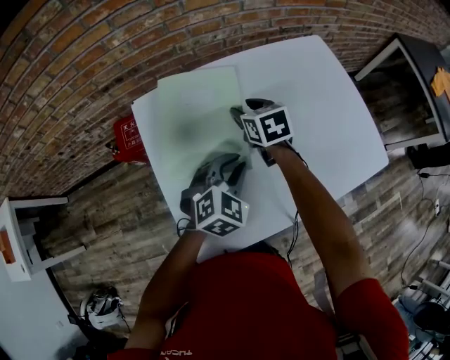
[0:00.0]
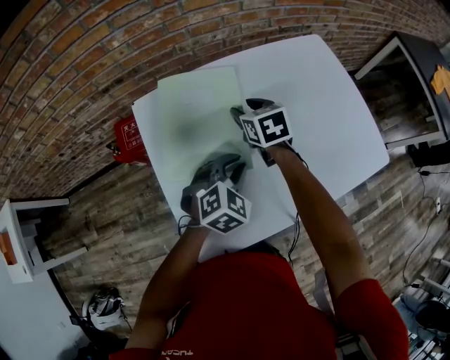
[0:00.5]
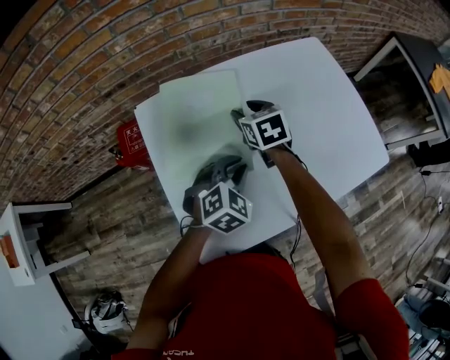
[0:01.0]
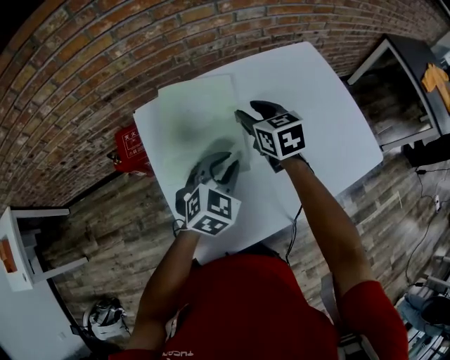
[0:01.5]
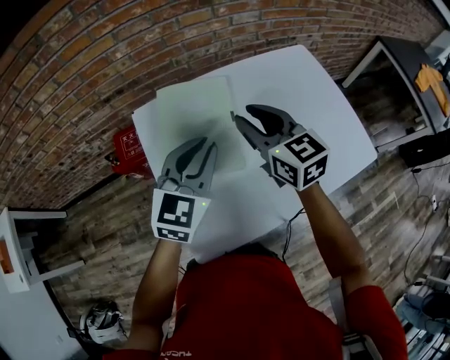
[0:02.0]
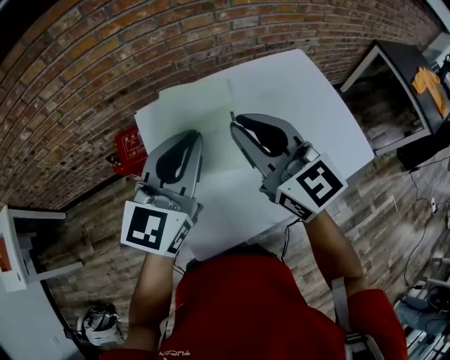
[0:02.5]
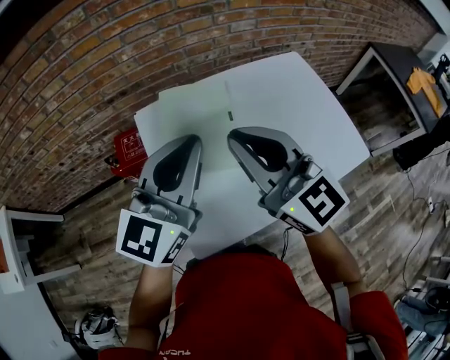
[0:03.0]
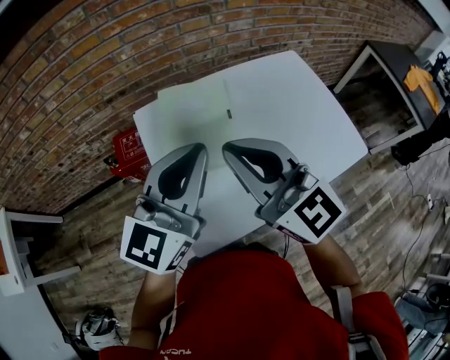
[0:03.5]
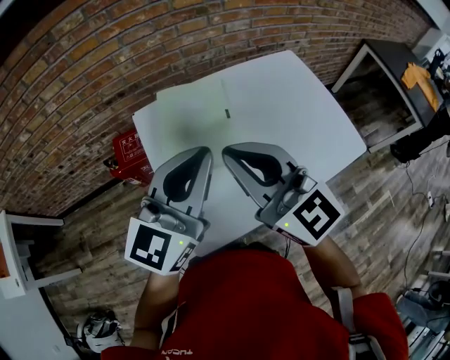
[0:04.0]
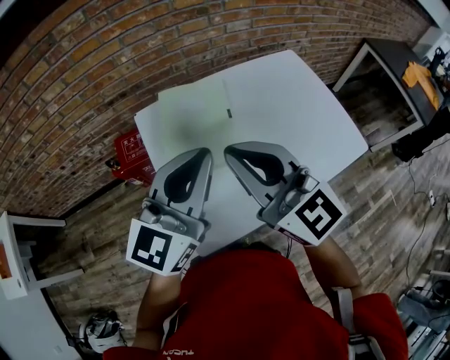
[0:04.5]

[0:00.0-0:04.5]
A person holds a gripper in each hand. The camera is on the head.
0:00.0 to 0:02.0: The right gripper goes approximately 20 cm upward and backward, and swivels approximately 30 degrees; the left gripper is displaced upward and to the left by some 15 cm, and swivels roughly 30 degrees.
0:02.0 to 0:04.5: The left gripper is displaced upward and backward by about 15 cm, and turns by roughly 20 degrees. The right gripper travels backward, upward and to the left by about 20 cm, rotates approximately 20 degrees, and closes up.

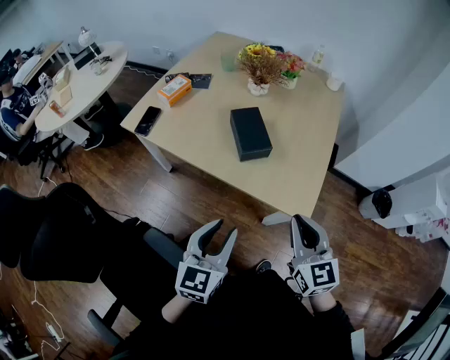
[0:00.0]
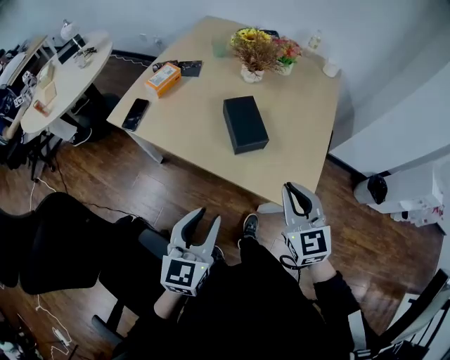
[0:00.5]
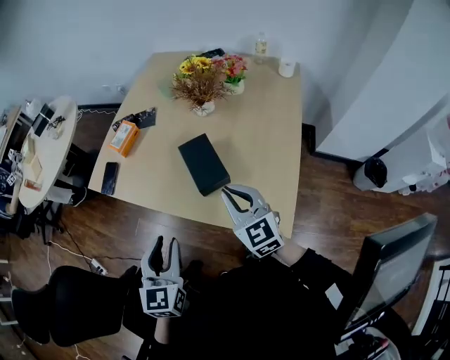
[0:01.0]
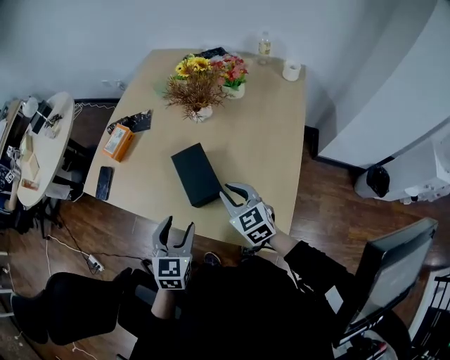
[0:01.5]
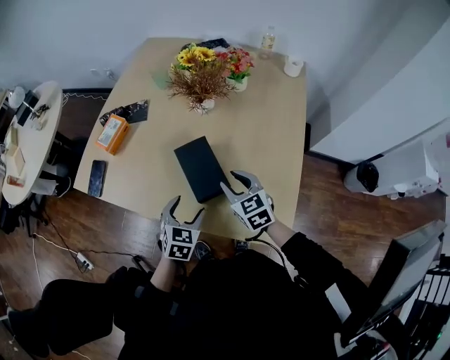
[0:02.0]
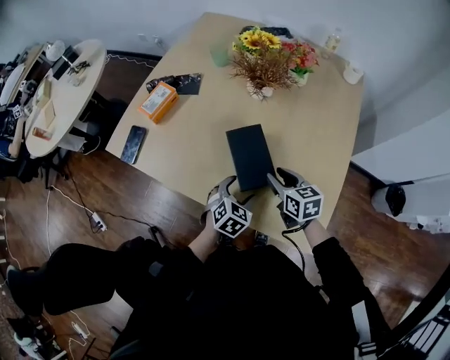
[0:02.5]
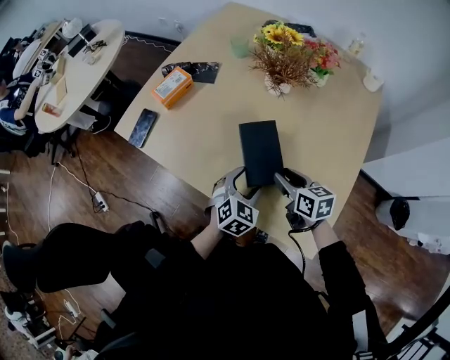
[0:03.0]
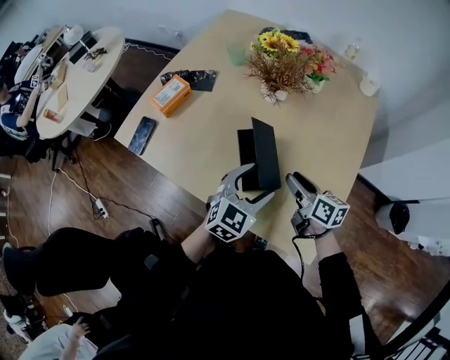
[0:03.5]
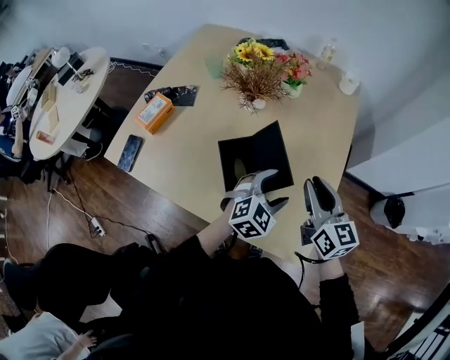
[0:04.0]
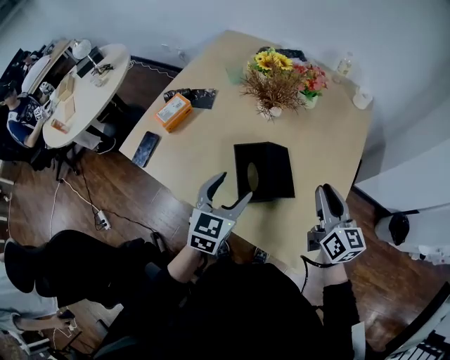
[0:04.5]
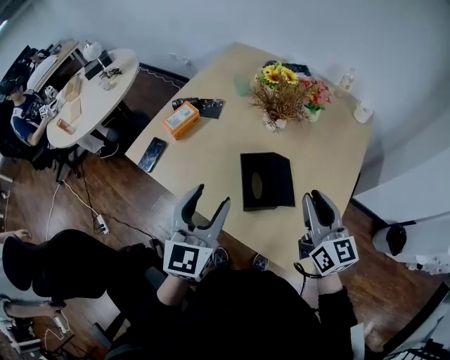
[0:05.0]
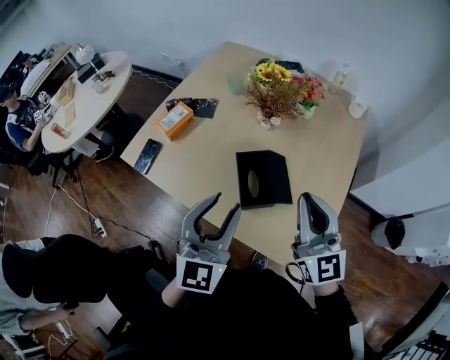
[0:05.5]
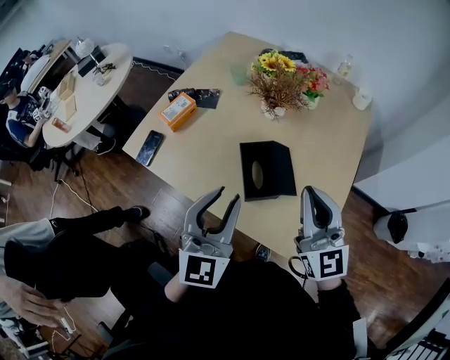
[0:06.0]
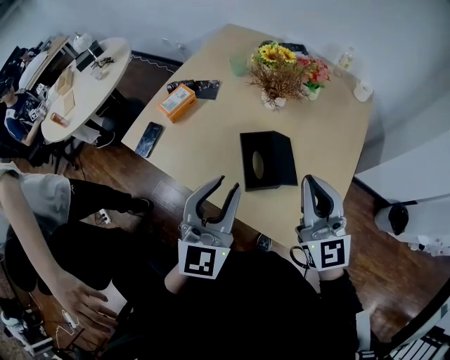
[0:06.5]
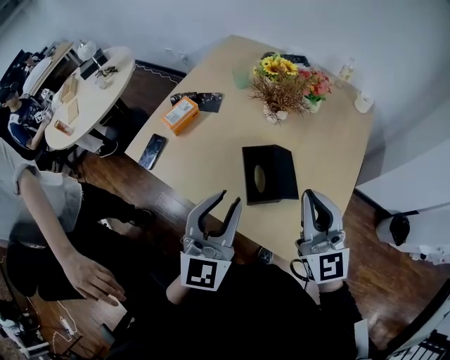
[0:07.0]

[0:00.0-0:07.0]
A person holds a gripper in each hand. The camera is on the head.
0:00.0 to 0:02.0: The grippers both shift forward and downward by about 35 cm. The left gripper rotates about 30 degrees, and opens its fingers; the right gripper opens its fingers.
0:02.0 to 0:03.5: The left gripper heads upward and to the right, covering about 10 cm, and swivels some 20 degrees. Meanwhile the right gripper twists approximately 40 degrees clockwise, seen from behind.
0:03.5 to 0:05.0: The left gripper is displaced upward and to the left by some 20 cm, and rotates about 30 degrees, while the right gripper goes roughly 20 cm upward, and swivels roughly 40 degrees.
0:05.0 to 0:07.0: The right gripper goes some 5 cm upward, changes its angle by approximately 20 degrees, and closes, while the left gripper closes.

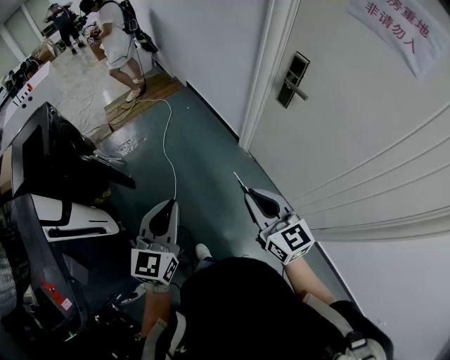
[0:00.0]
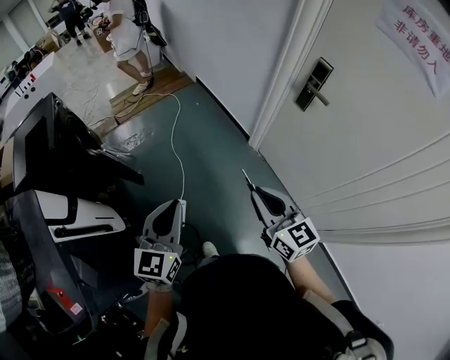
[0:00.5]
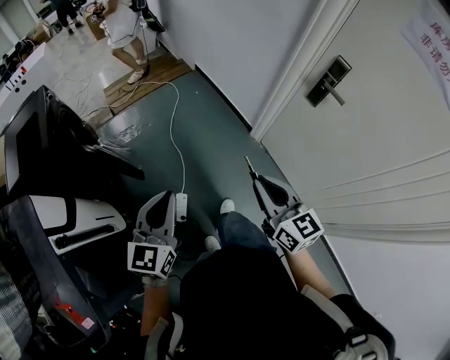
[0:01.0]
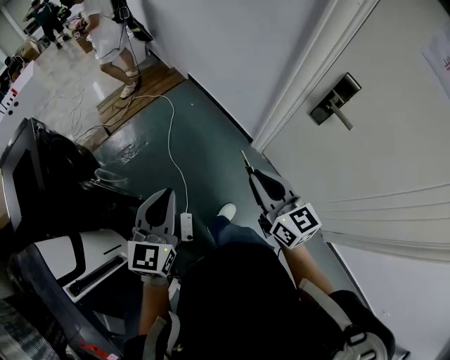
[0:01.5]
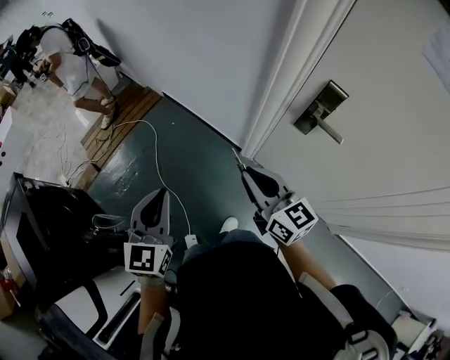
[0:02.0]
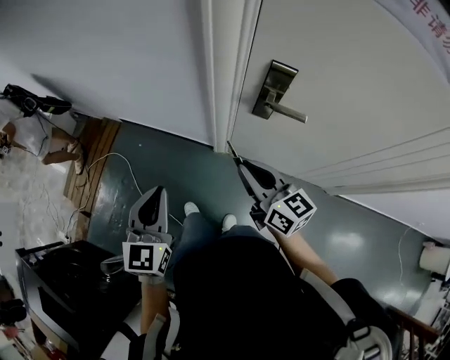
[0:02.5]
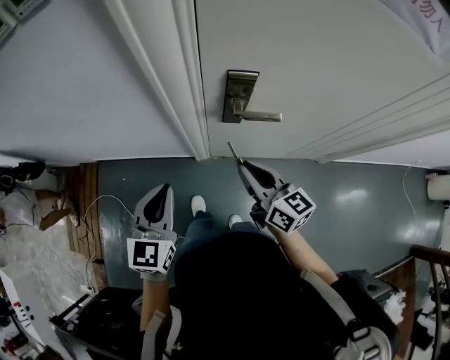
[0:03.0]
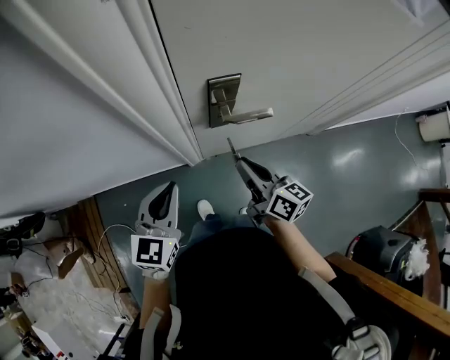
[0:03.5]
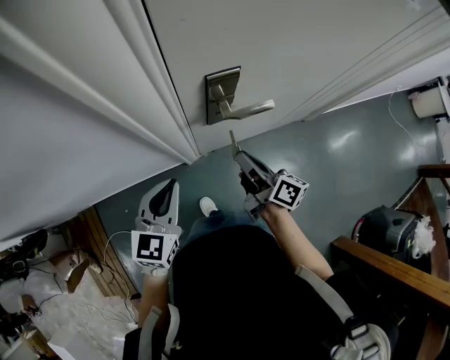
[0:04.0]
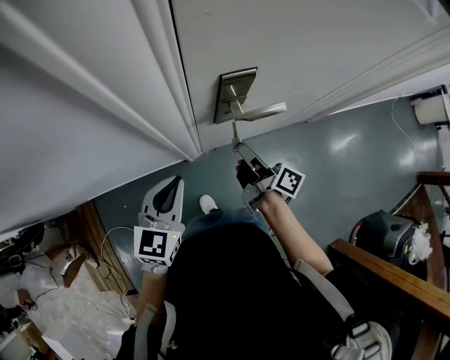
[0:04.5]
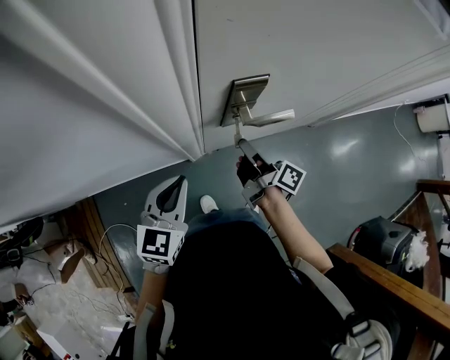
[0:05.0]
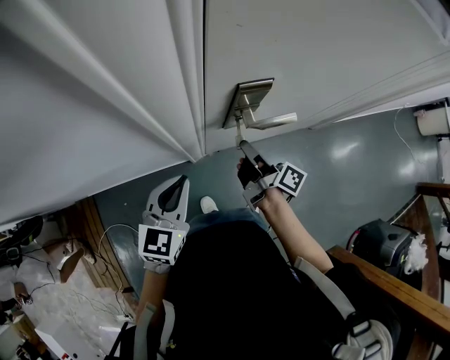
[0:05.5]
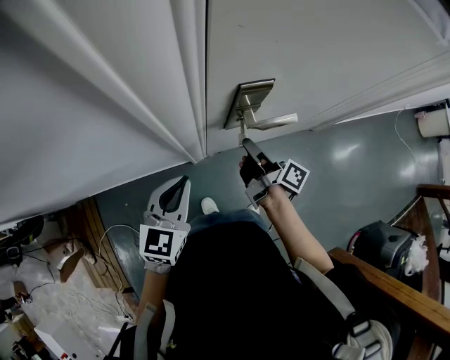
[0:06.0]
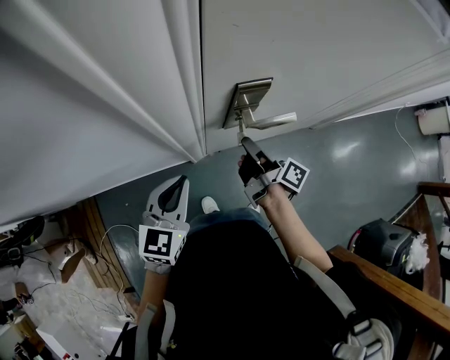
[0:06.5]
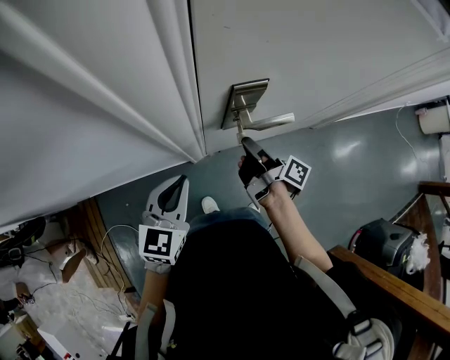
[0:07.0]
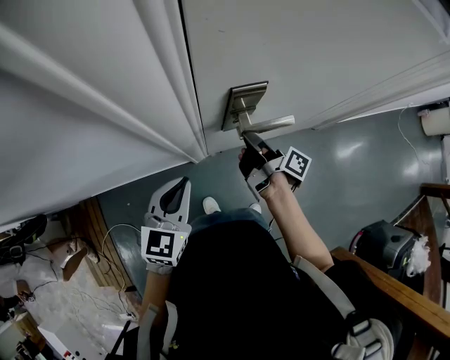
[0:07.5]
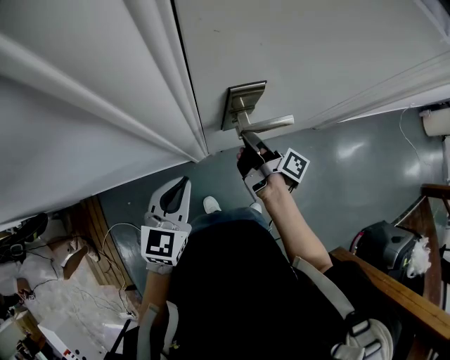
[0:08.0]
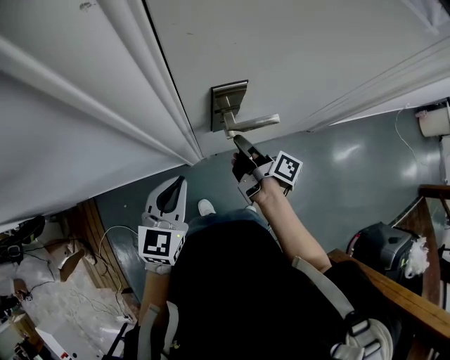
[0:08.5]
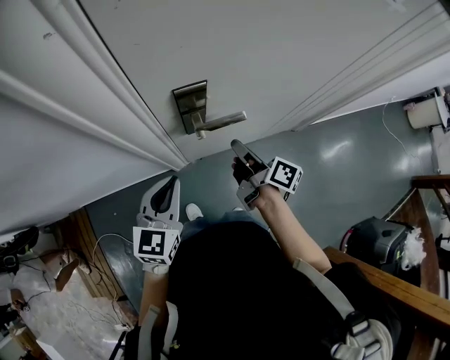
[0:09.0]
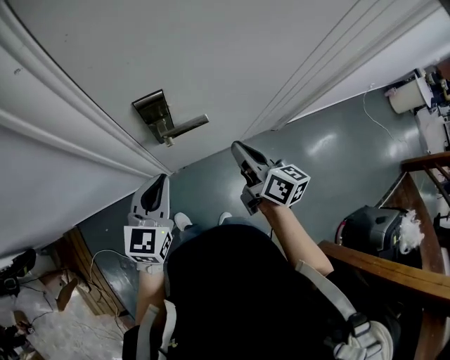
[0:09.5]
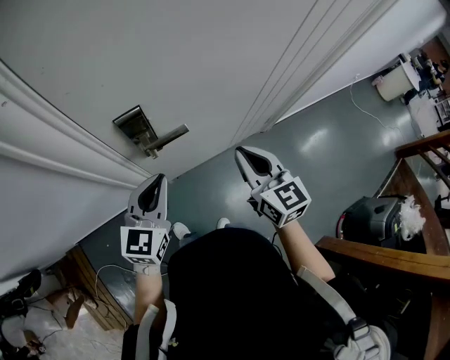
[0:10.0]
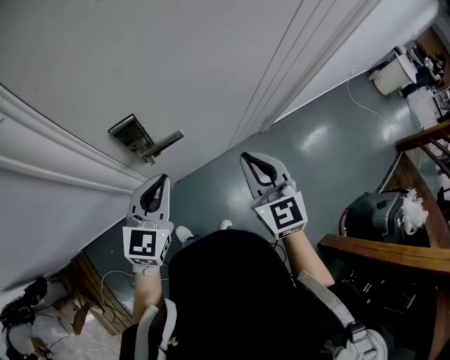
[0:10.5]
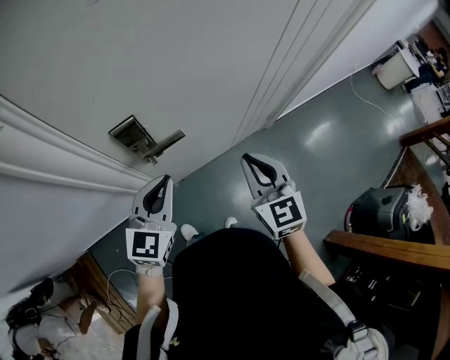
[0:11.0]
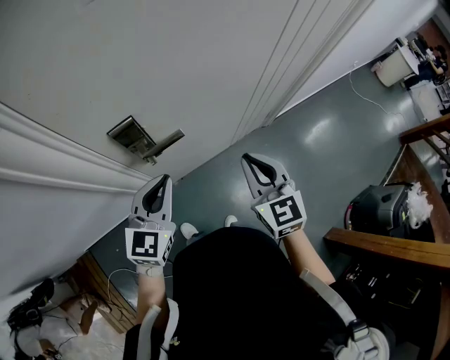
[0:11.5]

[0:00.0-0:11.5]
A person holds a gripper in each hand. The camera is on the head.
0:00.0 to 0:02.0: The two grippers go roughly 40 cm forward.
0:02.0 to 0:04.0: The right gripper moves roughly 25 cm, and changes its angle by approximately 70 degrees; the left gripper ends up some 40 cm from where it was, and swivels roughly 70 degrees.
0:04.0 to 0:06.0: The right gripper heads forward, covering about 5 cm, and turns by roughly 20 degrees.
0:06.0 to 0:07.5: The grippers make only small movements.
0:07.5 to 0:09.5: The right gripper heads to the right, upward and backward, covering about 20 cm, and rotates around the line of its fingers by about 50 degrees, counterclockwise from behind. Meanwhile the left gripper goes some 15 cm to the right.
0:09.5 to 0:11.5: The right gripper shifts approximately 10 cm to the right and upward, and rotates around the line of its fingers by about 40 degrees, counterclockwise from behind, while the left gripper moves to the right, some 5 cm.

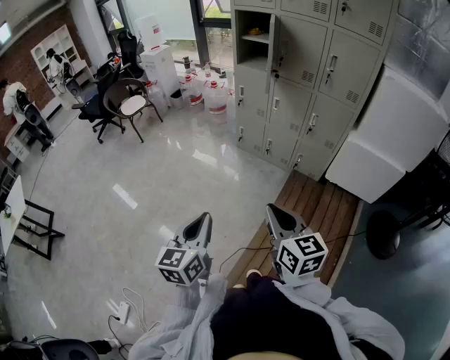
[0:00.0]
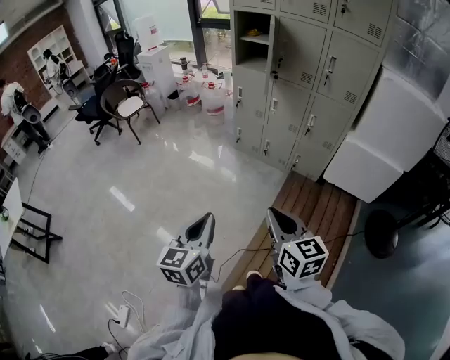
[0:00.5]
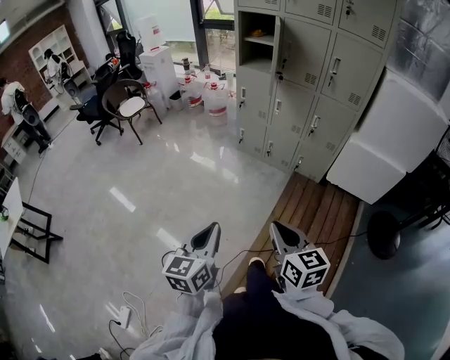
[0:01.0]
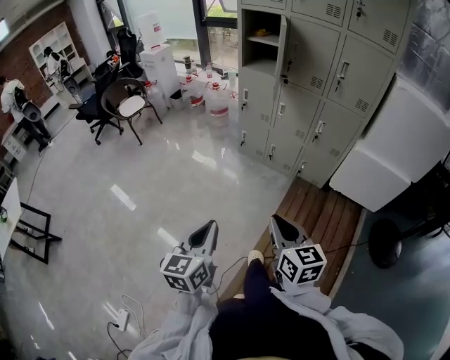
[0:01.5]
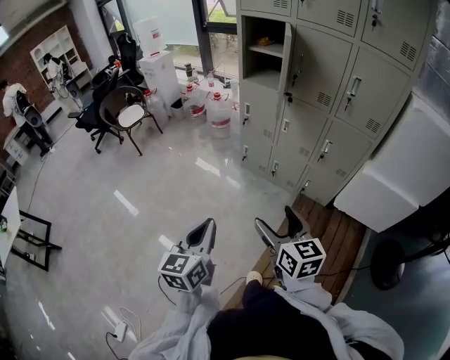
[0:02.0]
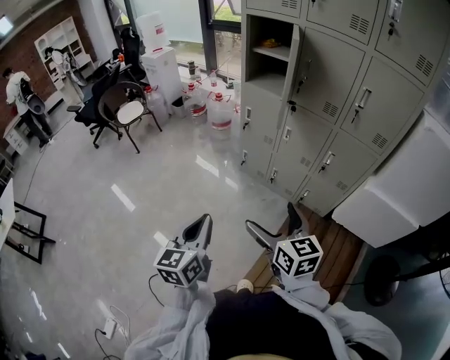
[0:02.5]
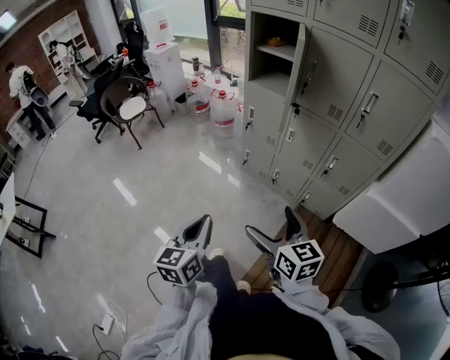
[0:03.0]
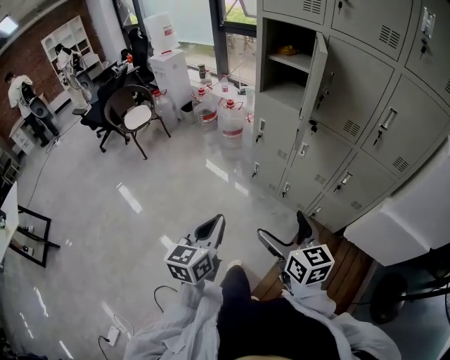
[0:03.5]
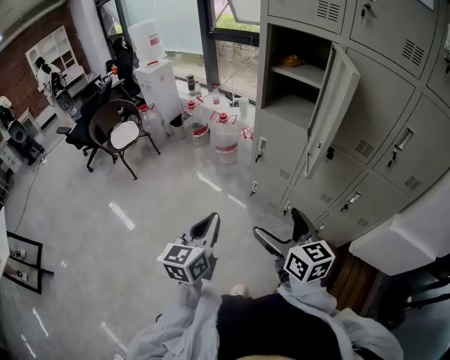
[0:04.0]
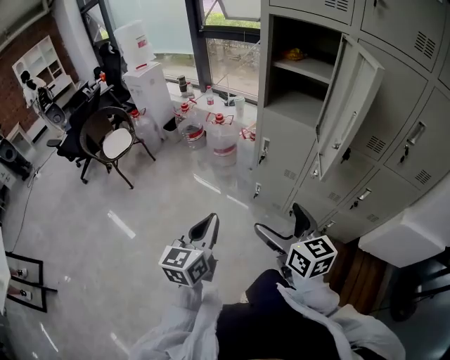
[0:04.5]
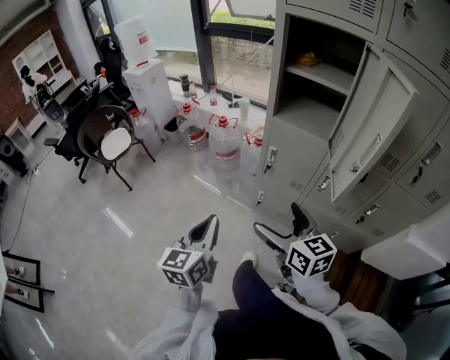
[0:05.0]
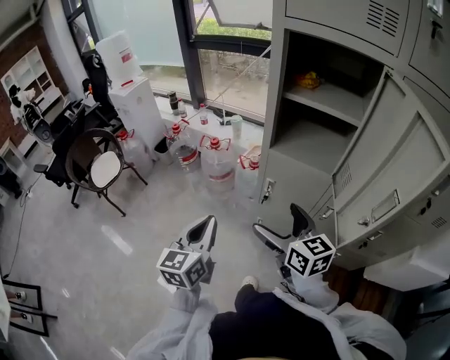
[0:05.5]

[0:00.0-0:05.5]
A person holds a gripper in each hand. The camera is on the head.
0:00.0 to 0:02.0: Both grippers travel together forward, approximately 20 cm. The right gripper opens.
0:02.0 to 0:03.5: The grippers both shift forward by about 20 cm.
0:03.5 to 0:05.5: The pair of grippers is taken forward, approximately 50 cm.
